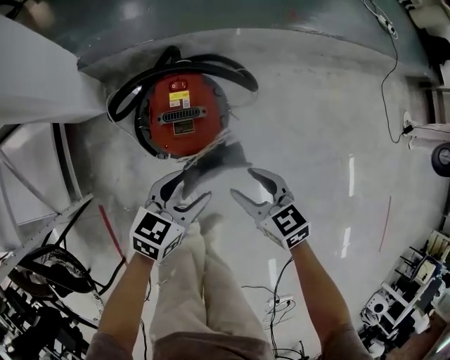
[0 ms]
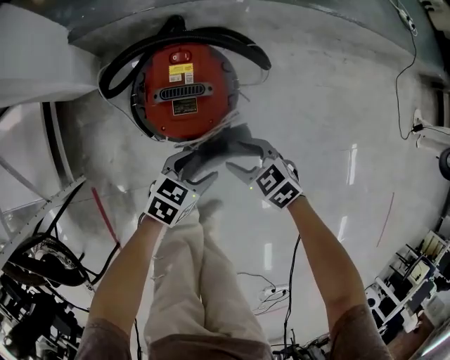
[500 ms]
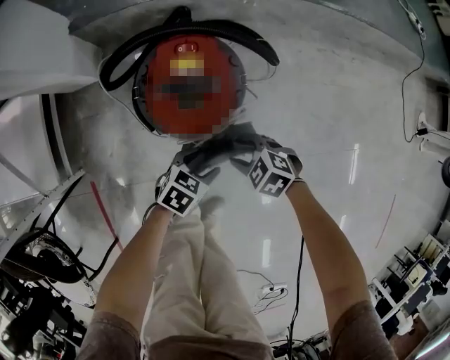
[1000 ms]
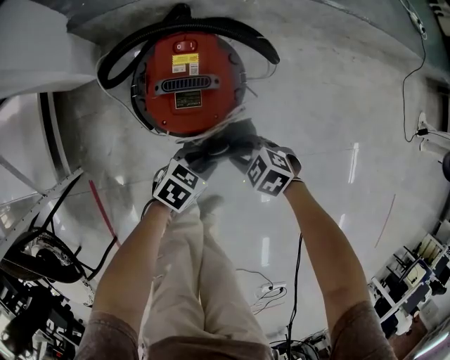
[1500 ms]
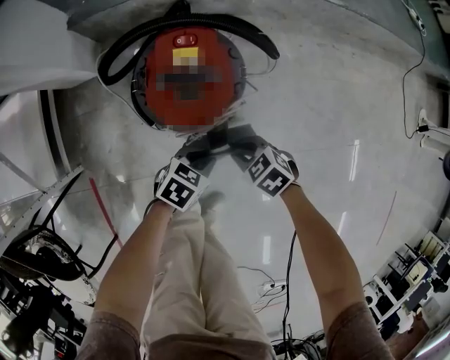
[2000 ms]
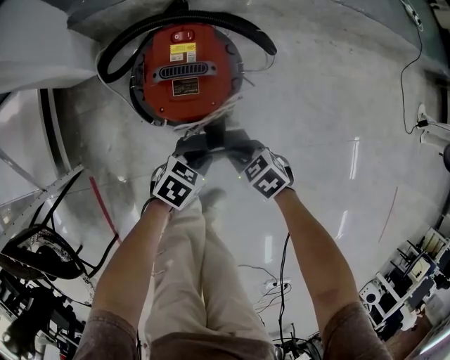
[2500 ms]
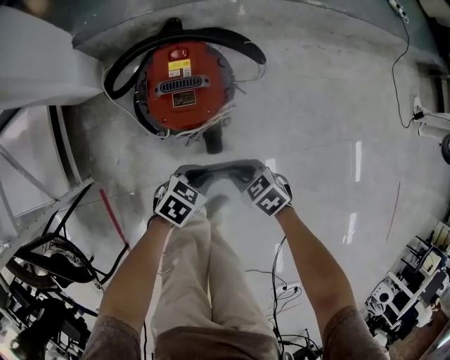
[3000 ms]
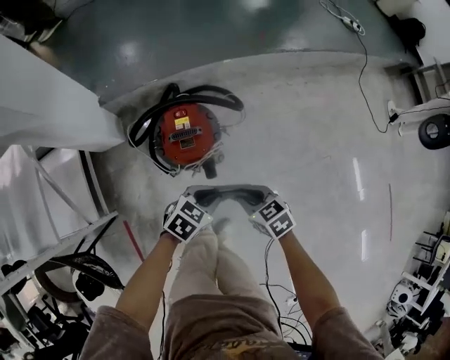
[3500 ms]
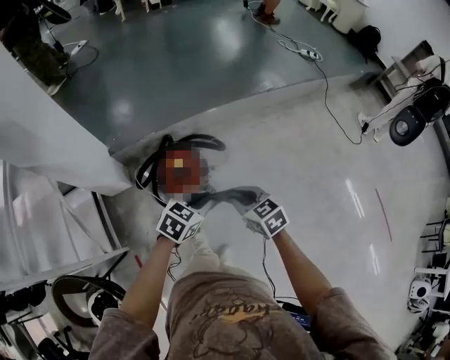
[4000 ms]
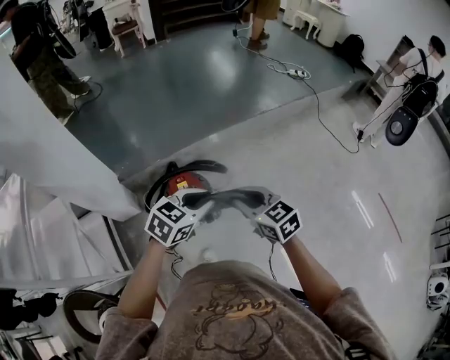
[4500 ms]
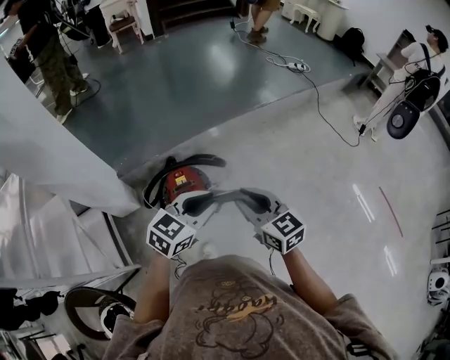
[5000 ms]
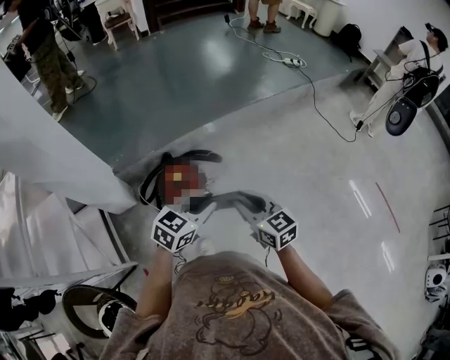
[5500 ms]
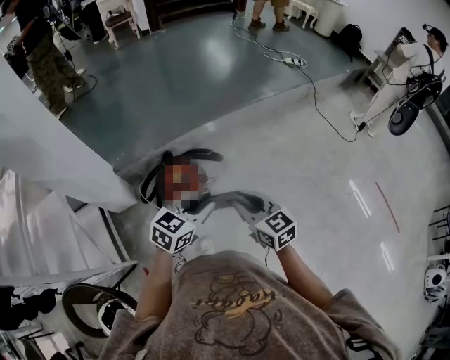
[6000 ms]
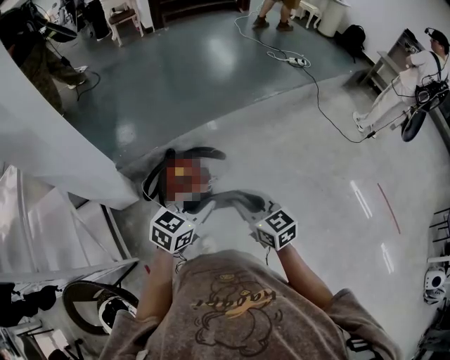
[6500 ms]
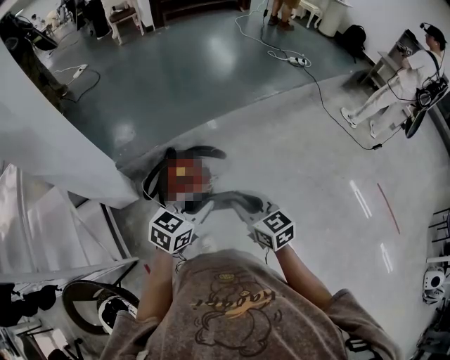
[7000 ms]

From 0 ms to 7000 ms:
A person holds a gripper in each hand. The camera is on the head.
From 0 ms to 2000 ms: Both grippers travel together downward, about 20 cm. The left gripper rotates approximately 20 degrees, and closes, while the right gripper swivels about 30 degrees, and closes its fingers.
From 2000 ms to 3500 ms: The grippers both shift upward by about 25 cm. The right gripper changes its angle by some 30 degrees.
From 3500 ms to 5000 ms: The two grippers go roughly 35 cm upward. The right gripper tips its fingers upward by approximately 40 degrees, while the left gripper rotates about 30 degrees.
From 5000 ms to 7000 ms: The right gripper is displaced downward by roughly 5 cm, while the left gripper changes place by approximately 5 cm.

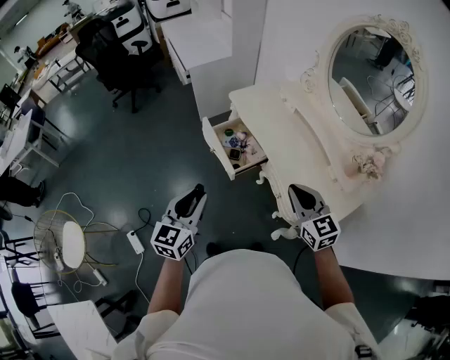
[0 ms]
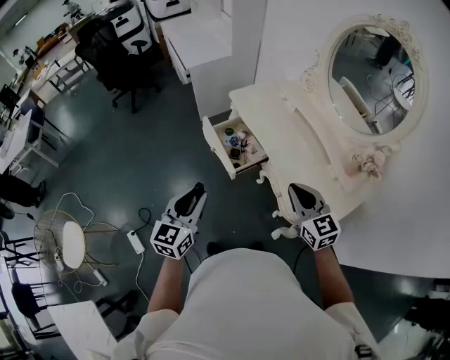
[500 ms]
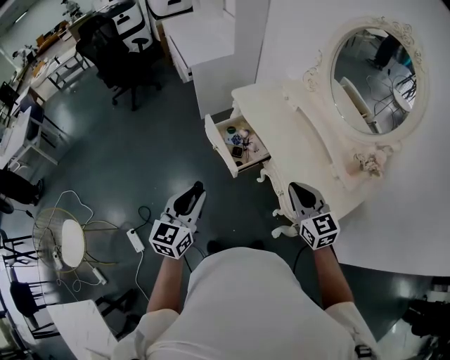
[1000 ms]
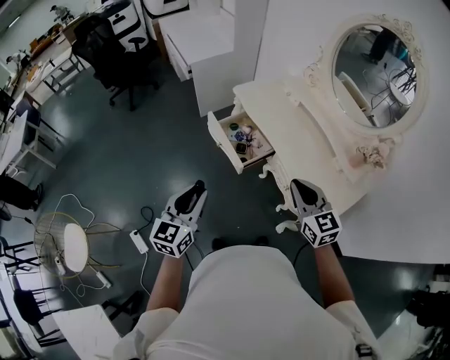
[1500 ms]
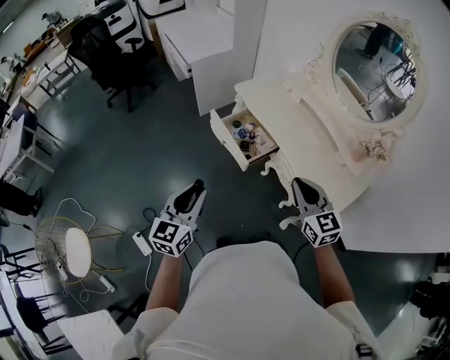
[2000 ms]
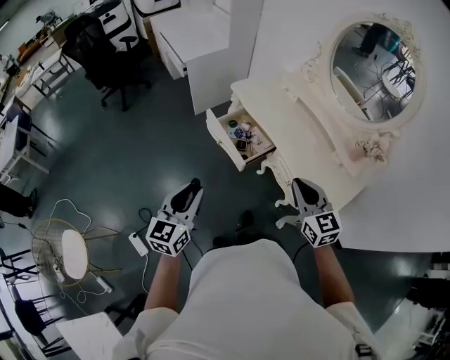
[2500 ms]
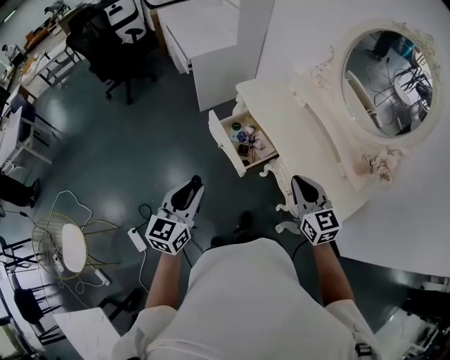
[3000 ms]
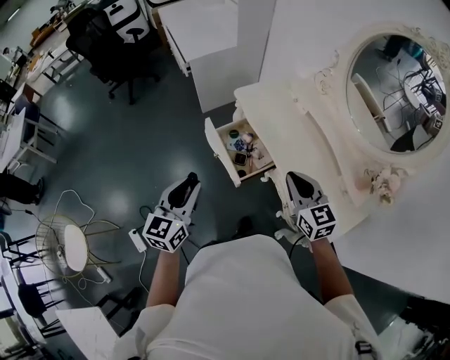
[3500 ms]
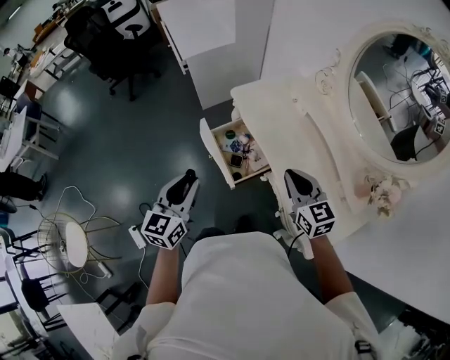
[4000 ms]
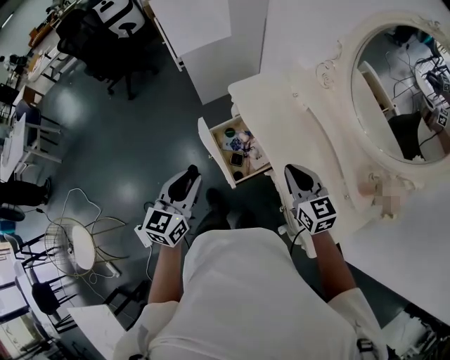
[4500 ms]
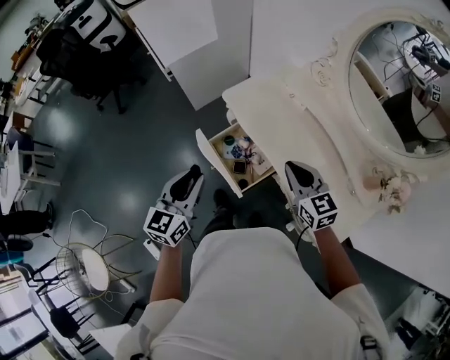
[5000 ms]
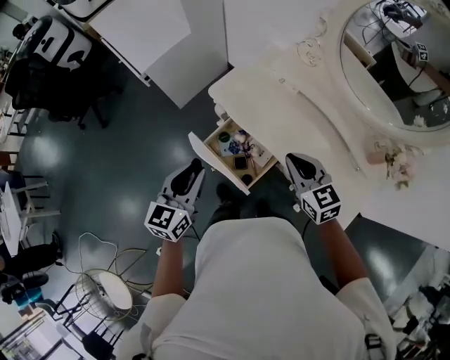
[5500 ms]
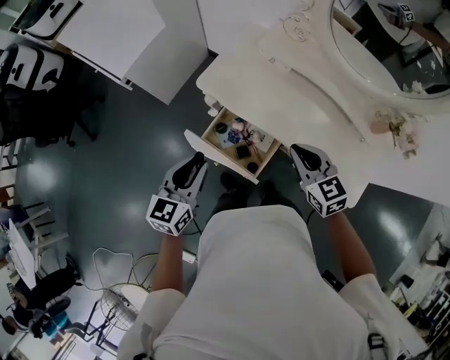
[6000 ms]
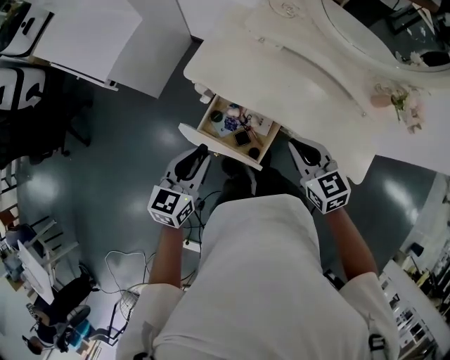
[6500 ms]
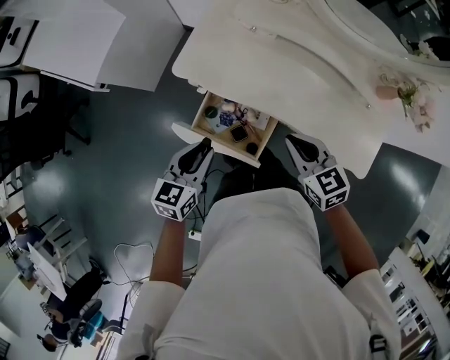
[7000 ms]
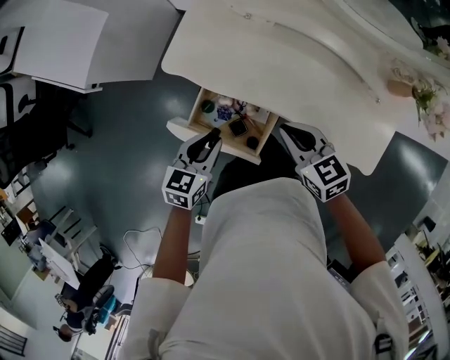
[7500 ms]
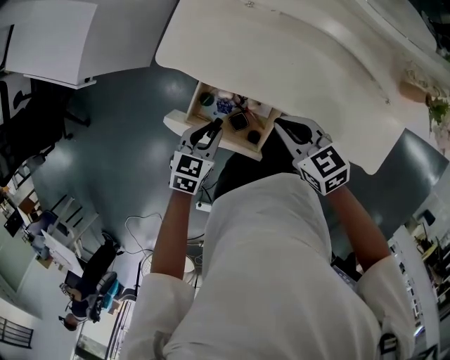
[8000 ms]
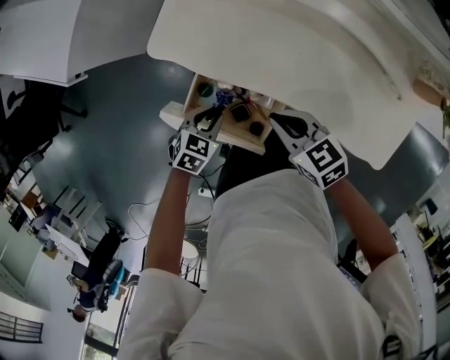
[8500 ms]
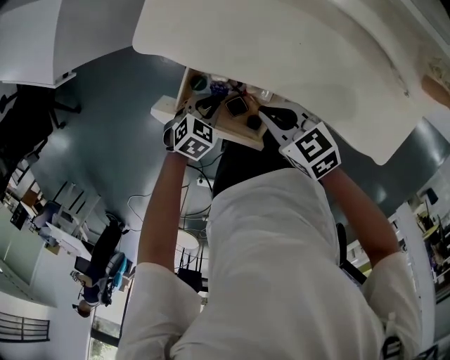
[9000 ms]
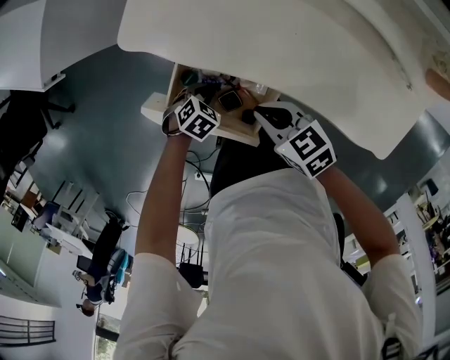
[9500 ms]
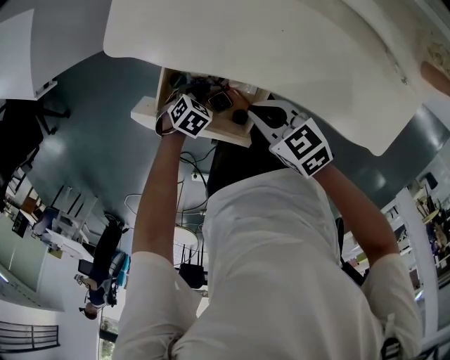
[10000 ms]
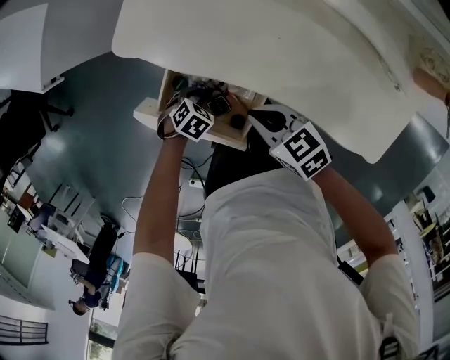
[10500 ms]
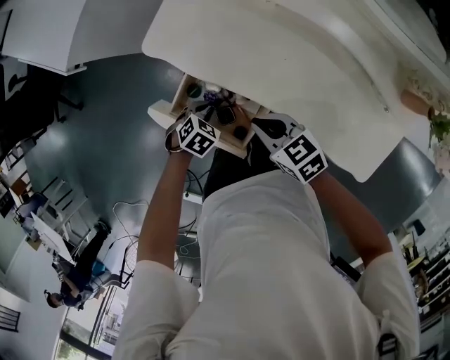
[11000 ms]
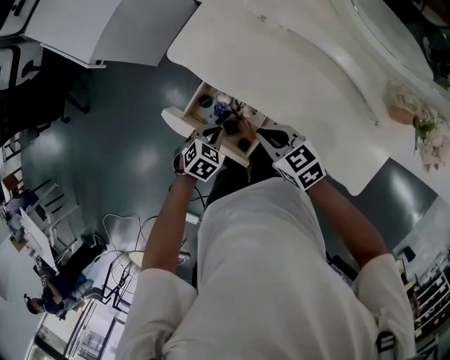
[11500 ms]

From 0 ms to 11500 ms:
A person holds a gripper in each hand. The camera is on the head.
From 0 ms to 2000 ms: Both grippers travel together to the left, about 10 cm.
From 2000 ms to 4000 ms: The right gripper shifts some 20 cm forward. Meanwhile the left gripper is displaced forward and to the right by roughly 20 cm.
From 4000 ms to 6000 ms: The right gripper changes place by approximately 10 cm, and changes its angle by approximately 20 degrees. The left gripper moves approximately 20 cm, and changes its angle by about 30 degrees.
From 6000 ms to 7500 ms: The right gripper is displaced downward by roughly 10 cm. The left gripper is displaced downward, to the right and forward by about 15 cm, and rotates about 30 degrees.
From 7500 ms to 9500 ms: The left gripper goes approximately 25 cm downward, and angles its fingers downward, by about 40 degrees, while the right gripper travels downward by about 15 cm, and rotates approximately 20 degrees.
From 9500 ms to 11500 ms: The left gripper goes about 15 cm upward, and rotates approximately 20 degrees. The right gripper goes approximately 10 cm upward.

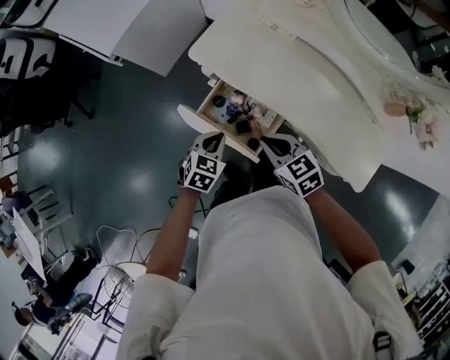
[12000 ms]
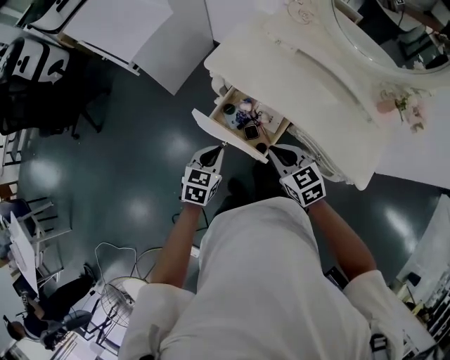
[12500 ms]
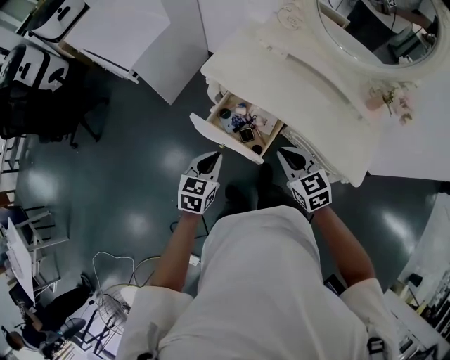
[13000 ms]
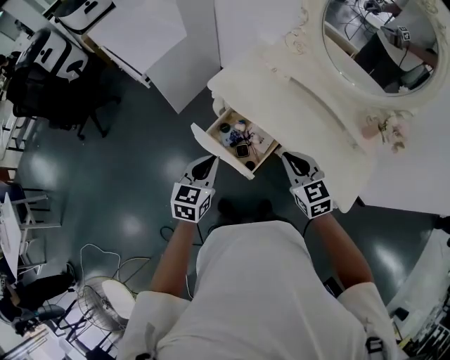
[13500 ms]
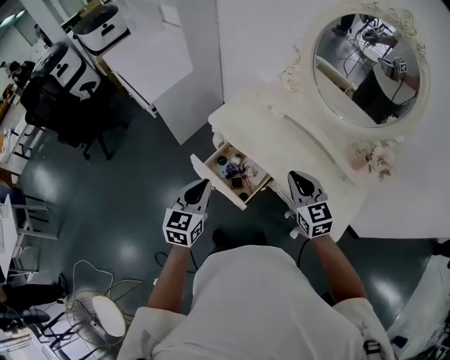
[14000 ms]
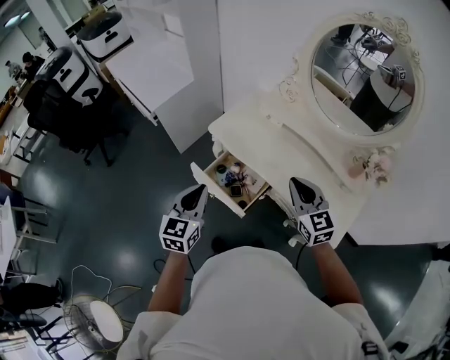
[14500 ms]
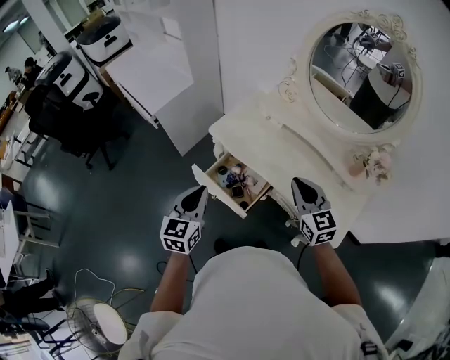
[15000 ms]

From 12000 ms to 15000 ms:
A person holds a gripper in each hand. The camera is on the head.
From 12000 ms to 13500 ms: The left gripper goes approximately 20 cm upward and backward, and changes its angle by some 30 degrees, while the right gripper moves upward and to the right, roughly 15 cm, and changes its angle by roughly 20 degrees.
From 13500 ms to 15000 ms: The right gripper goes some 10 cm upward and to the right, while the left gripper heads upward, covering some 10 cm.

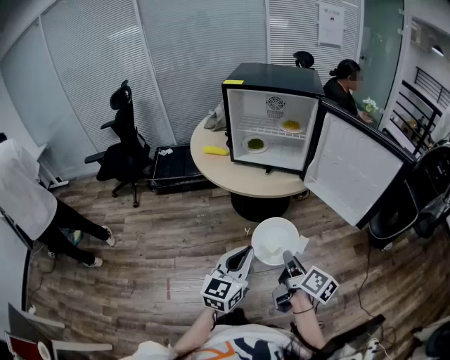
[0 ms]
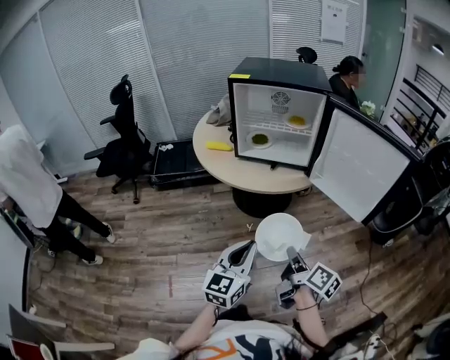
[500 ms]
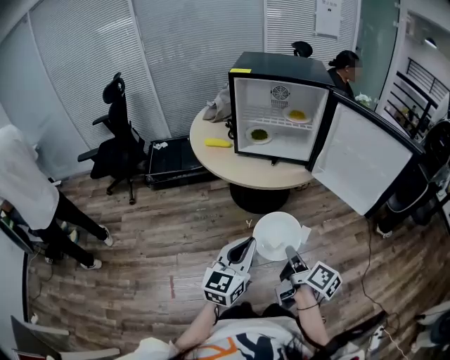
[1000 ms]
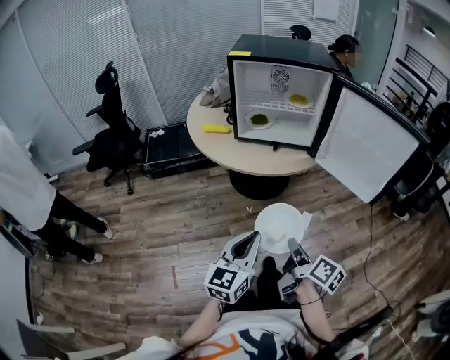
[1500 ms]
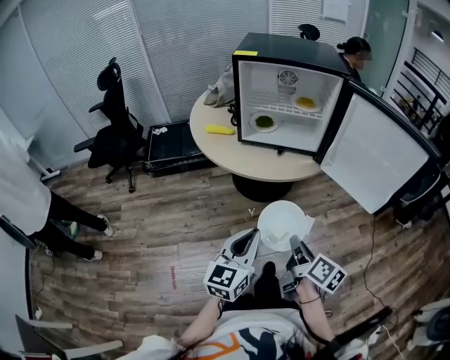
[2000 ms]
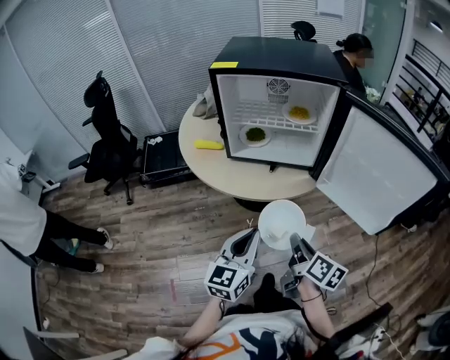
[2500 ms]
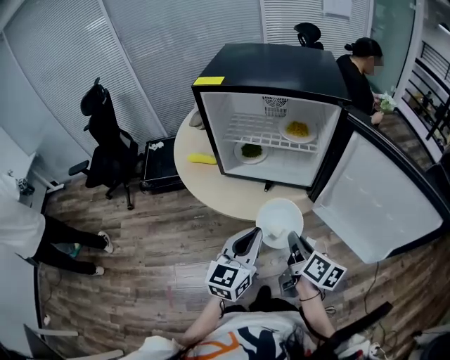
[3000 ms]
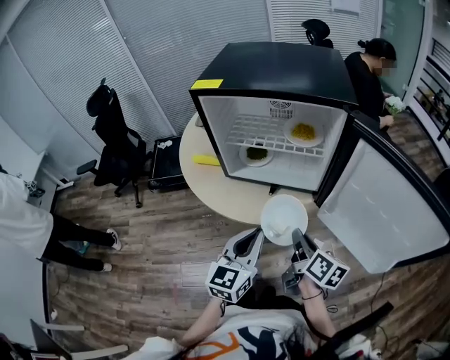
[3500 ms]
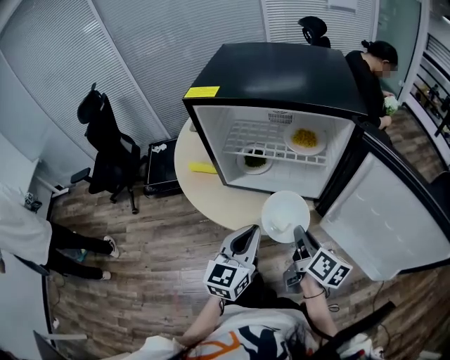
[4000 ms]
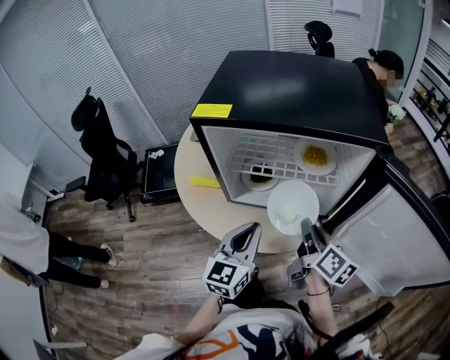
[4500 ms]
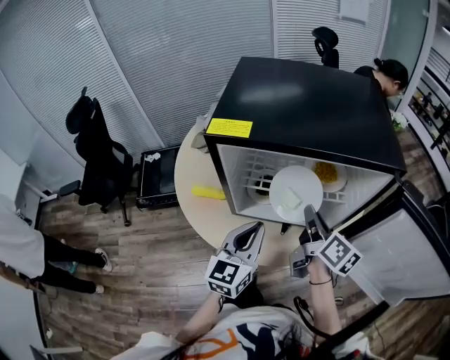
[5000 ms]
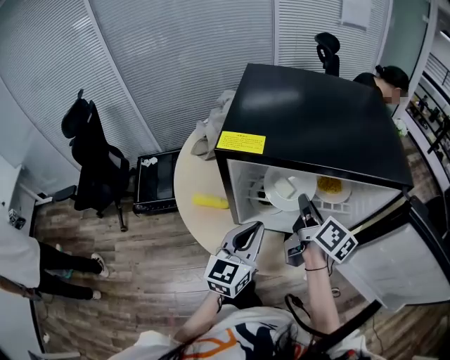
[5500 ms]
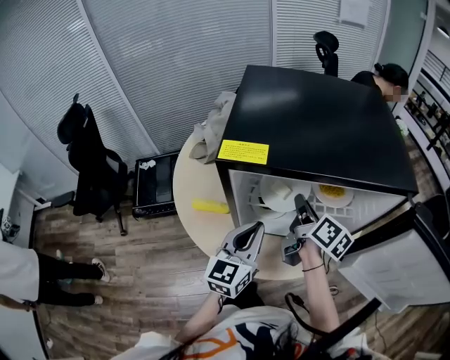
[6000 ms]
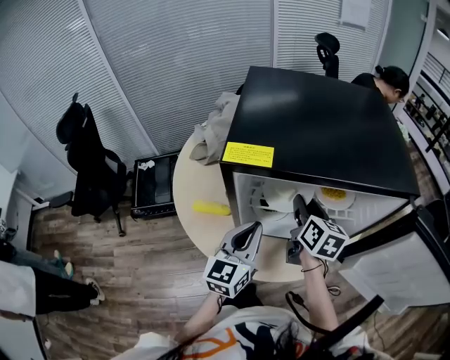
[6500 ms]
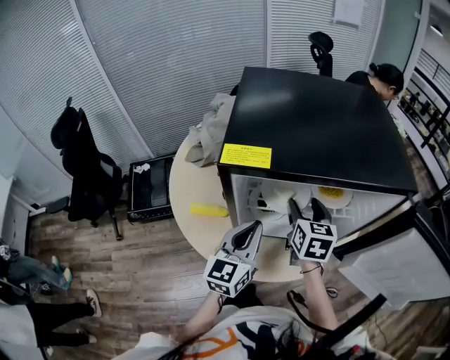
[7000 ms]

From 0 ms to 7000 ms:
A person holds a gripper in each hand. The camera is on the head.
From 0 ms to 2000 ms: The right gripper is displaced to the left by approximately 5 cm; the left gripper travels to the left and forward by about 10 cm.
From 2000 ms to 3500 ms: The grippers both shift forward by roughly 25 cm.
From 3500 ms to 5000 ms: The right gripper heads forward, covering about 20 cm. The left gripper goes approximately 20 cm forward and to the left.
From 5000 ms to 7000 ms: The right gripper shifts about 10 cm forward and to the left, rolls counterclockwise, seen from behind, by approximately 40 degrees, and opens its fingers, while the left gripper shifts approximately 5 cm forward.
